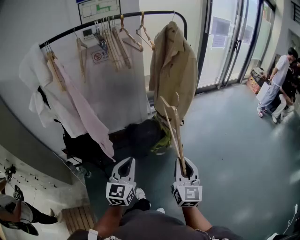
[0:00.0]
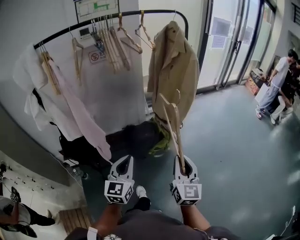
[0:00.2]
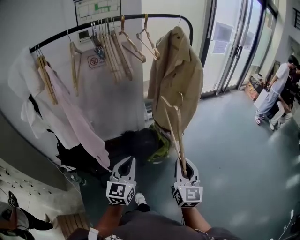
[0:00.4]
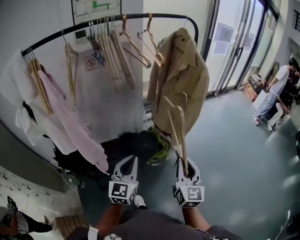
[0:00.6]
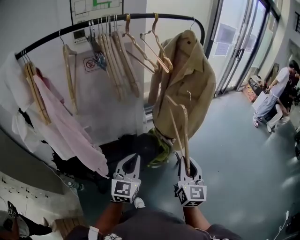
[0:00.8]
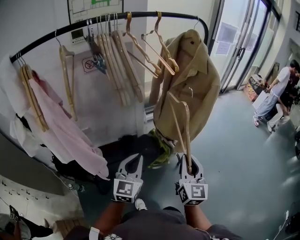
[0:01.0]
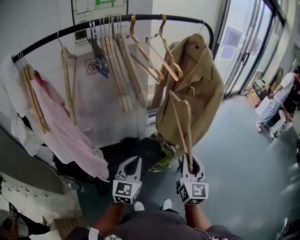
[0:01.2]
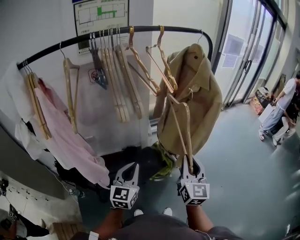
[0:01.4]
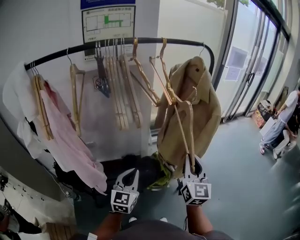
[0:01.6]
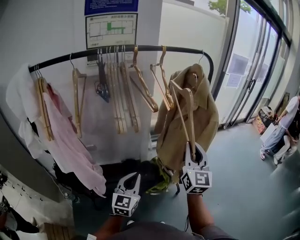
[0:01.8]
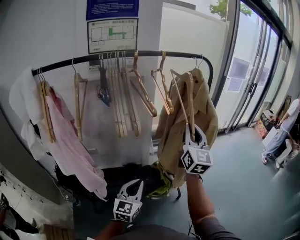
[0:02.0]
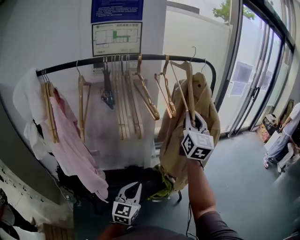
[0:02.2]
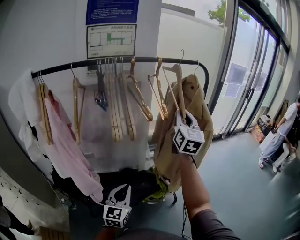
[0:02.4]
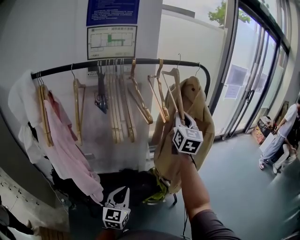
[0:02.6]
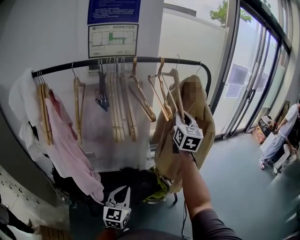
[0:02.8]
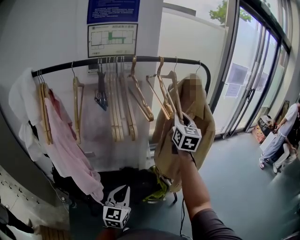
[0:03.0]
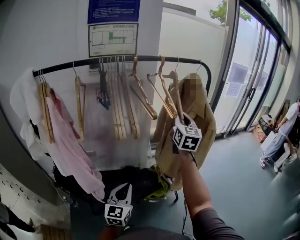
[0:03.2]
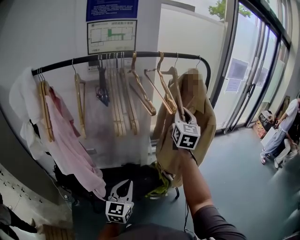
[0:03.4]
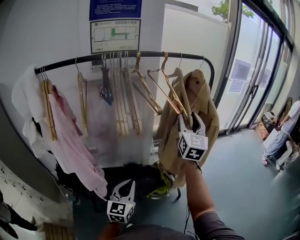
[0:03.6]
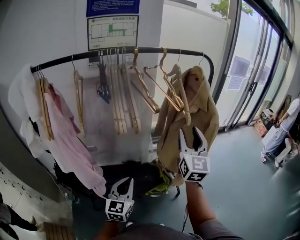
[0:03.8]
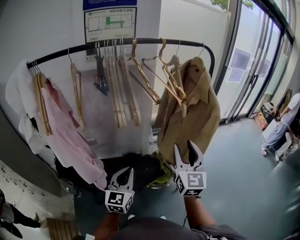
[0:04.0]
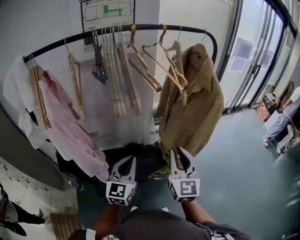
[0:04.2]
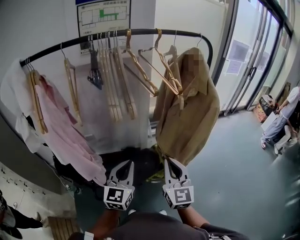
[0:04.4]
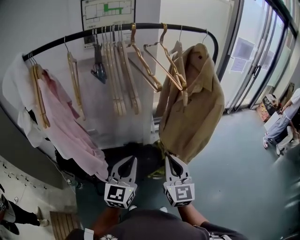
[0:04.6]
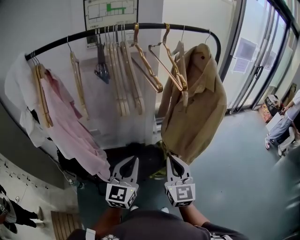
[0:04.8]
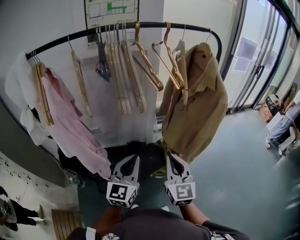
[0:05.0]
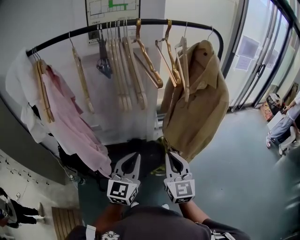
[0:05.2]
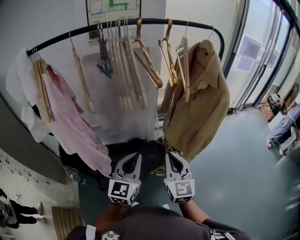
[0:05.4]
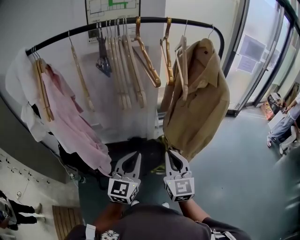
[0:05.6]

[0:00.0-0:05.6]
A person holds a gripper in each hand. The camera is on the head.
0:00.0 to 0:01.4: Both grippers travel together forward, some 25 cm.
0:01.4 to 0:02.8: The right gripper shifts some 30 cm forward and upward.
0:02.8 to 0:04.2: The right gripper shifts some 25 cm backward and downward, and opens and closes again.
0:04.2 to 0:05.6: The right gripper shifts by roughly 5 cm.

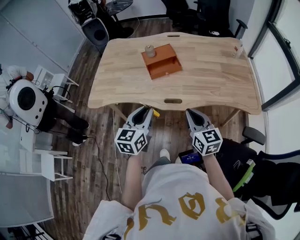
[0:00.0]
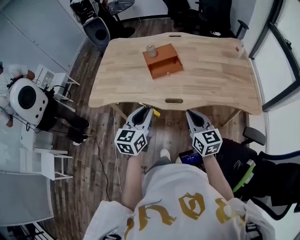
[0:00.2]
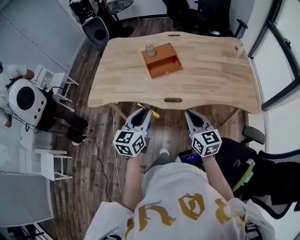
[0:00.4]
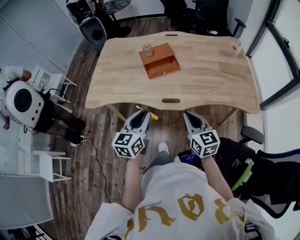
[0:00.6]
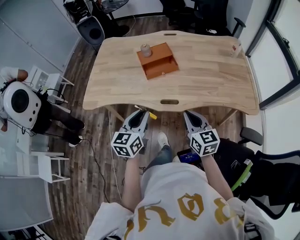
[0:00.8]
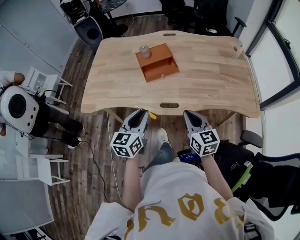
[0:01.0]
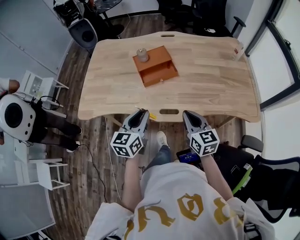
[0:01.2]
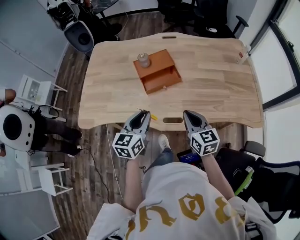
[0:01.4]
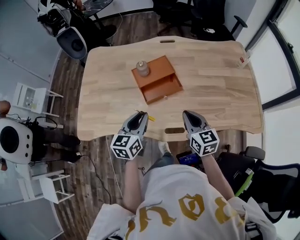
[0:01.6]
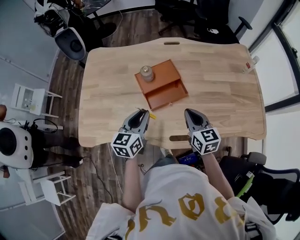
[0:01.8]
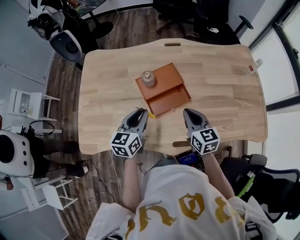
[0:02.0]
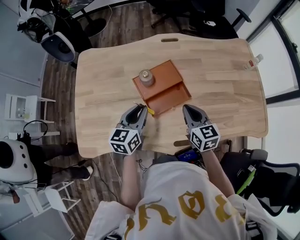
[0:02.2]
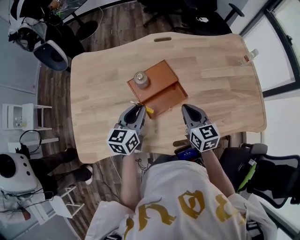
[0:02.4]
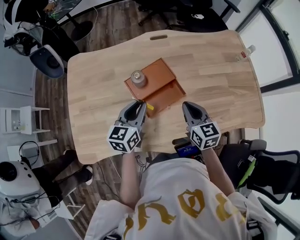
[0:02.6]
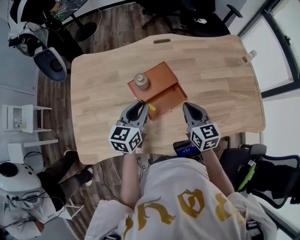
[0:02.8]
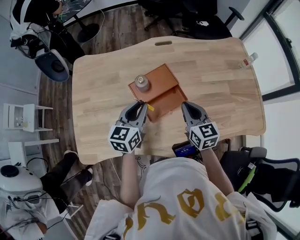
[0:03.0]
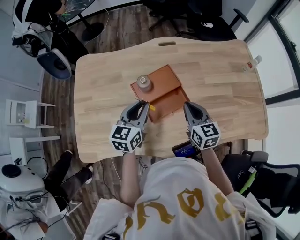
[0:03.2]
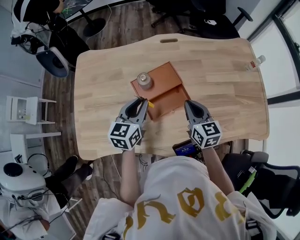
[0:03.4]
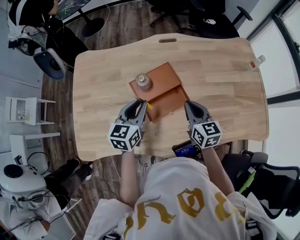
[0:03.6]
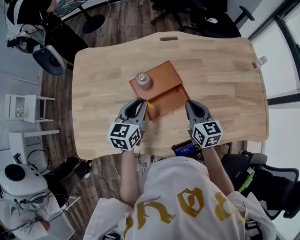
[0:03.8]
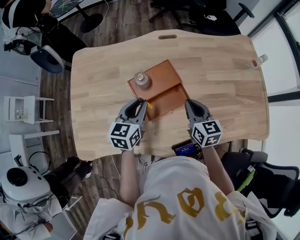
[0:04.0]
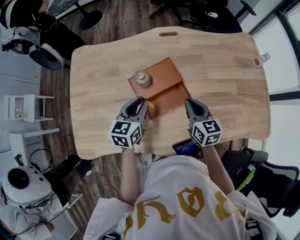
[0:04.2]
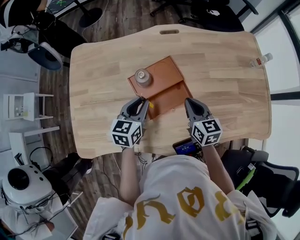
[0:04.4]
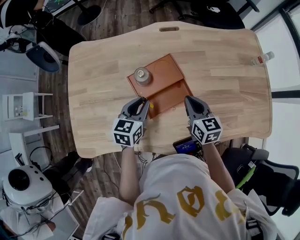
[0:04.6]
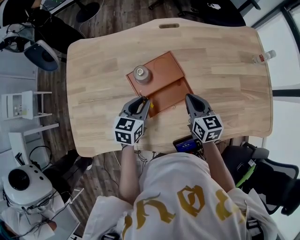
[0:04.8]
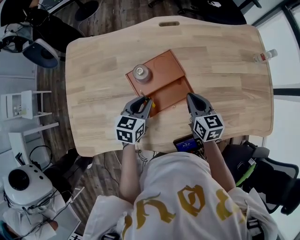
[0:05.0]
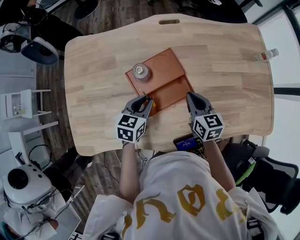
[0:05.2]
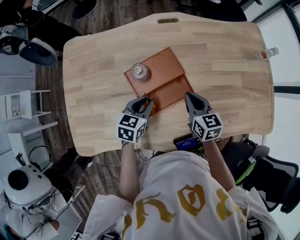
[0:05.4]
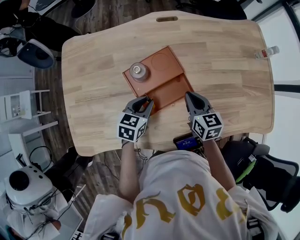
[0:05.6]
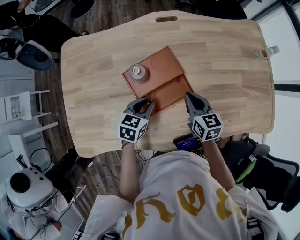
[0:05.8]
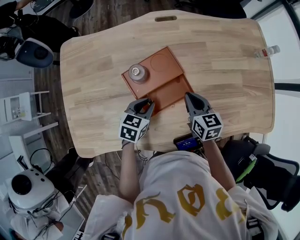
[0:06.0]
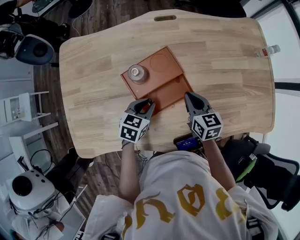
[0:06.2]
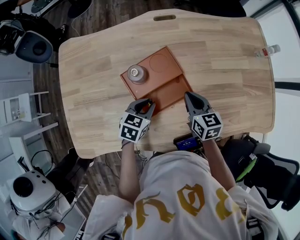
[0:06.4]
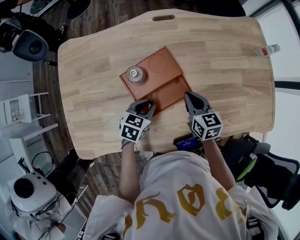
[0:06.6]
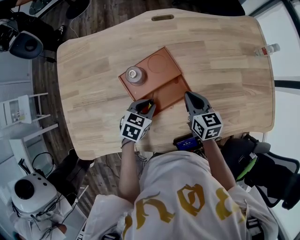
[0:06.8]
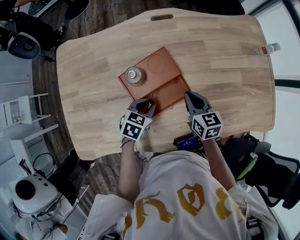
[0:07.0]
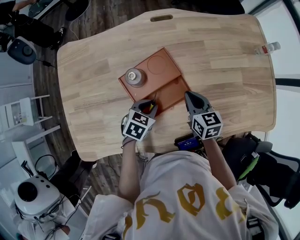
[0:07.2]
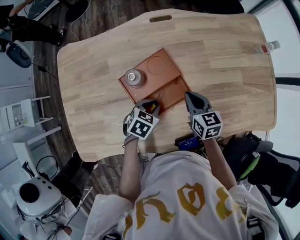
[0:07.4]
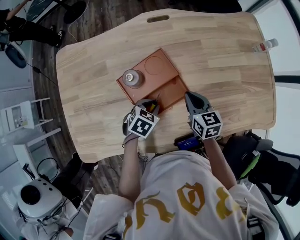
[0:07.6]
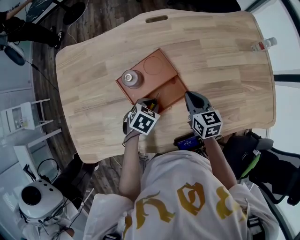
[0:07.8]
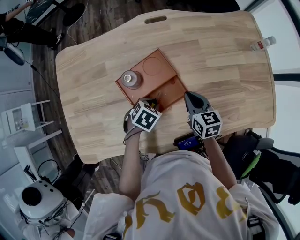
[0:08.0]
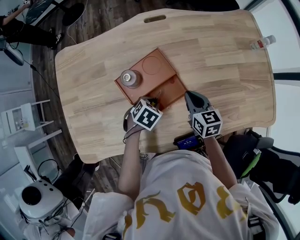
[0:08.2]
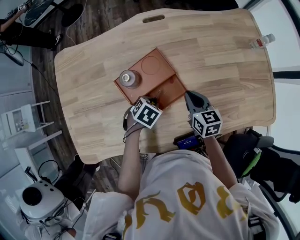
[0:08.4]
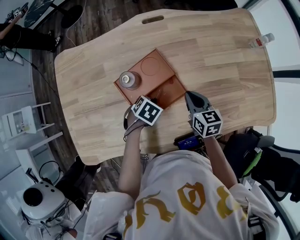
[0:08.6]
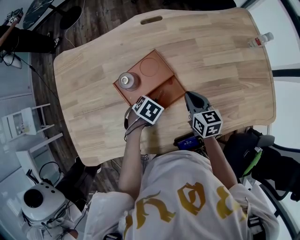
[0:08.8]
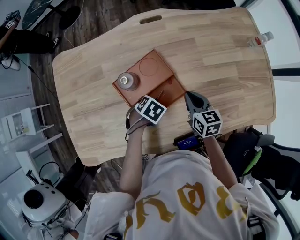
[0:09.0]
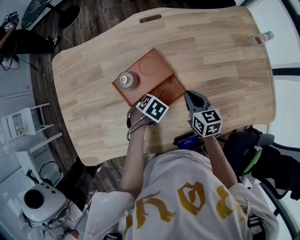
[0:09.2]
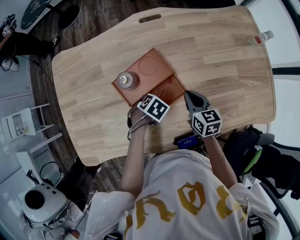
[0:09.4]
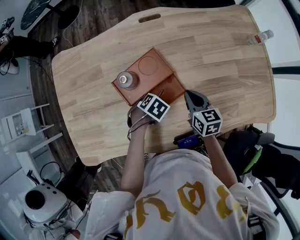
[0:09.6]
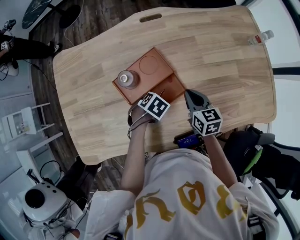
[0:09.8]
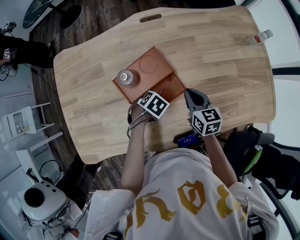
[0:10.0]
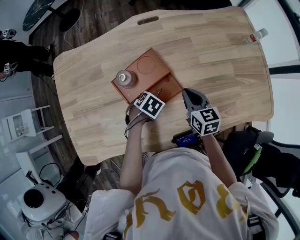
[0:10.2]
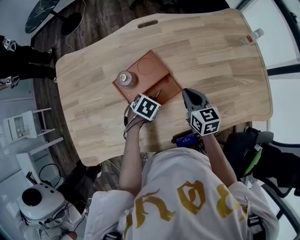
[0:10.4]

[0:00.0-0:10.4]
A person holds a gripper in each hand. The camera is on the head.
0:00.0 to 0:01.4: Both grippers travel together forward, roughly 15 cm.
0:01.4 to 0:03.0: Both grippers move forward, some 20 cm.
0:03.0 to 0:04.4: Both grippers move downward, roughly 5 cm.
0:04.4 to 0:06.0: The left gripper goes some 10 cm downward, and rotates about 20 degrees.
0:06.0 to 0:07.4: The grippers move only a little.
0:07.4 to 0:09.0: The left gripper turns by some 20 degrees.
0:09.0 to 0:10.4: The grippers make only small movements.

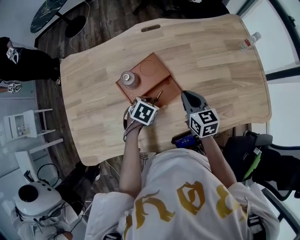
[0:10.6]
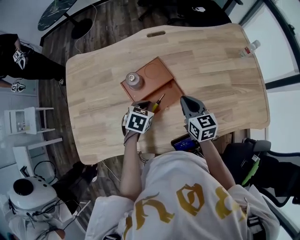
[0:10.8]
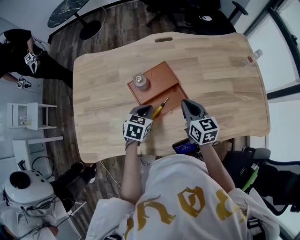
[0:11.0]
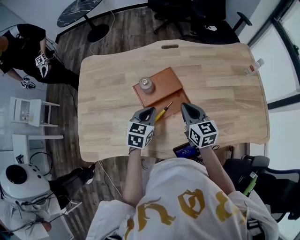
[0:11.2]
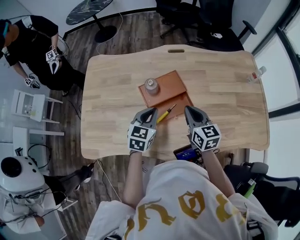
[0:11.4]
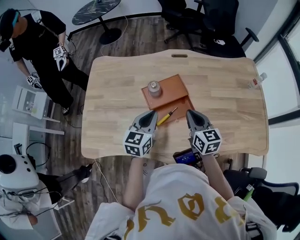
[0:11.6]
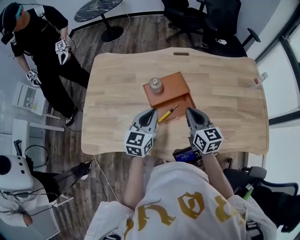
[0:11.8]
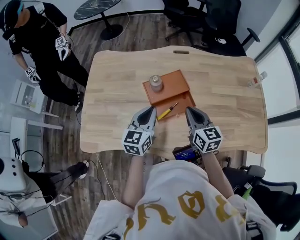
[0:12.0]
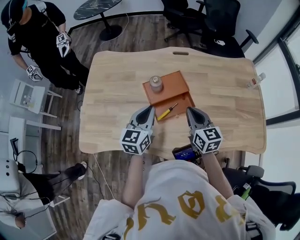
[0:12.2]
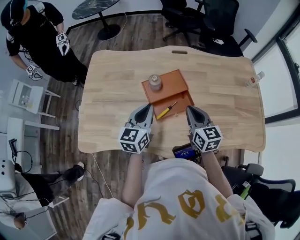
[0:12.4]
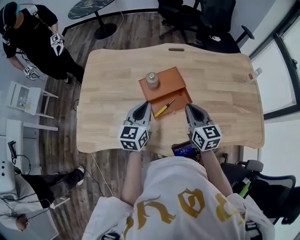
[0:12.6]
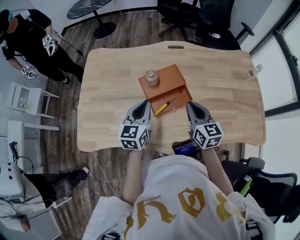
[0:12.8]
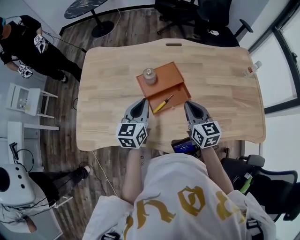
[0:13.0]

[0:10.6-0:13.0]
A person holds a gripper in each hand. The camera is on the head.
0:10.6 to 0:11.8: The right gripper is displaced upward and to the left by approximately 10 cm. The left gripper moves upward, approximately 20 cm, and tips its fingers upward by roughly 50 degrees.
0:11.8 to 0:13.0: There are only small adjustments of the grippers.

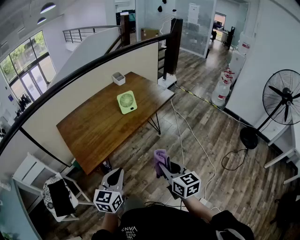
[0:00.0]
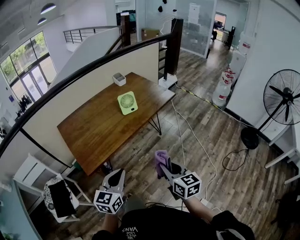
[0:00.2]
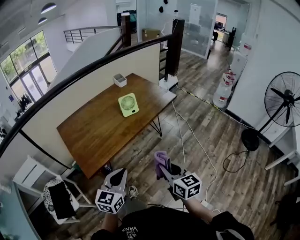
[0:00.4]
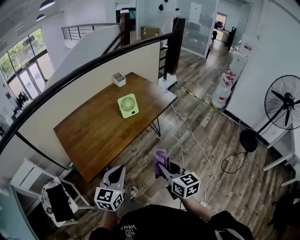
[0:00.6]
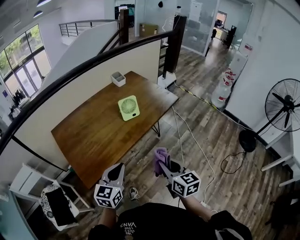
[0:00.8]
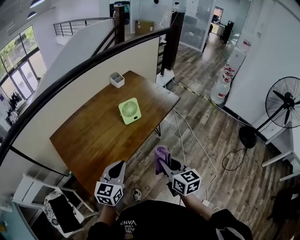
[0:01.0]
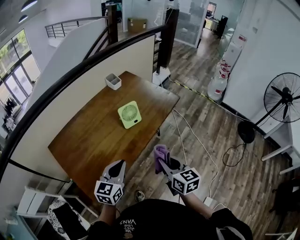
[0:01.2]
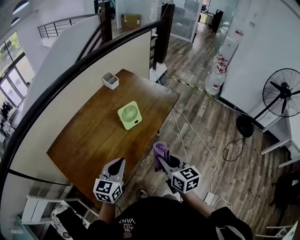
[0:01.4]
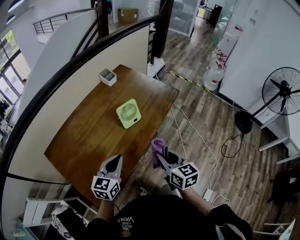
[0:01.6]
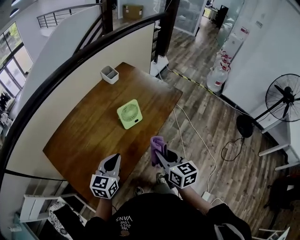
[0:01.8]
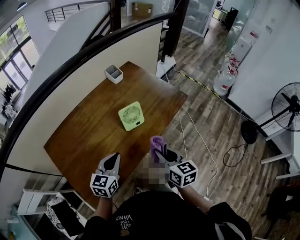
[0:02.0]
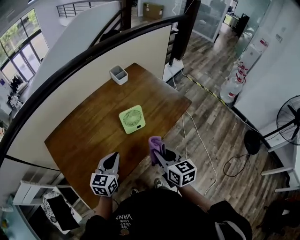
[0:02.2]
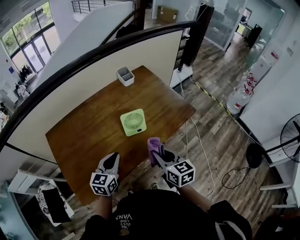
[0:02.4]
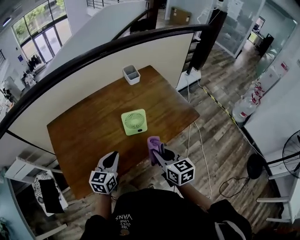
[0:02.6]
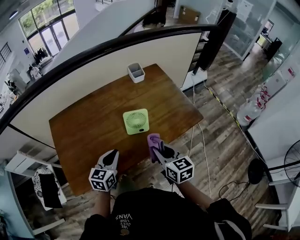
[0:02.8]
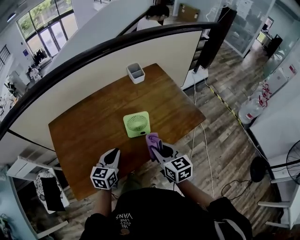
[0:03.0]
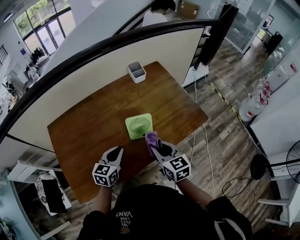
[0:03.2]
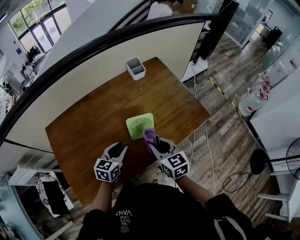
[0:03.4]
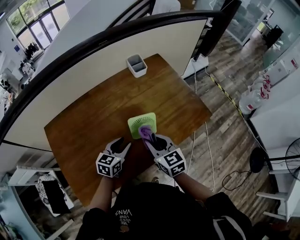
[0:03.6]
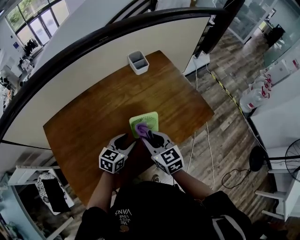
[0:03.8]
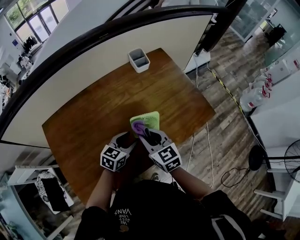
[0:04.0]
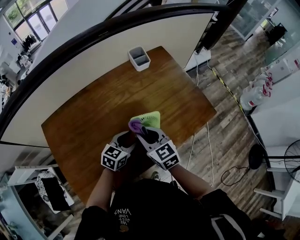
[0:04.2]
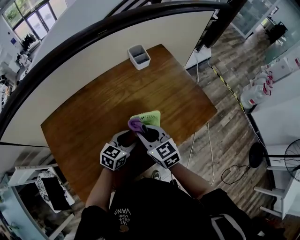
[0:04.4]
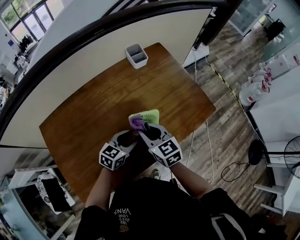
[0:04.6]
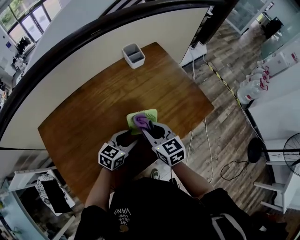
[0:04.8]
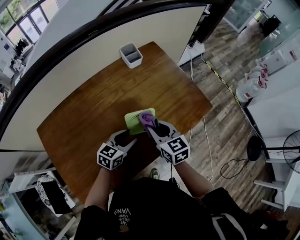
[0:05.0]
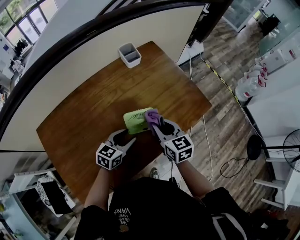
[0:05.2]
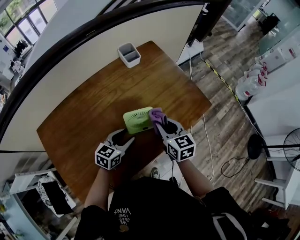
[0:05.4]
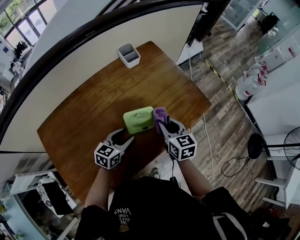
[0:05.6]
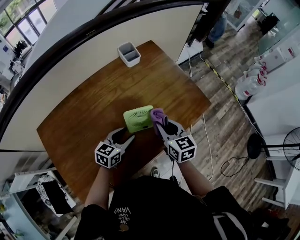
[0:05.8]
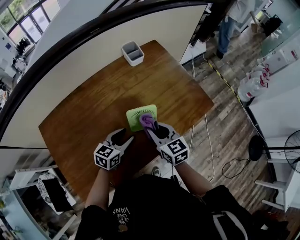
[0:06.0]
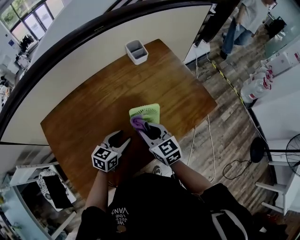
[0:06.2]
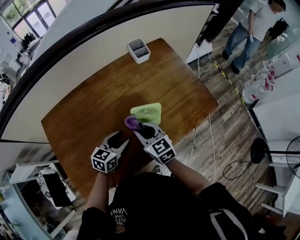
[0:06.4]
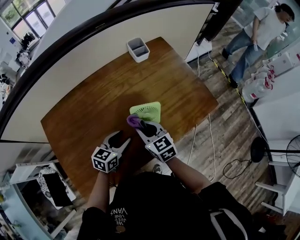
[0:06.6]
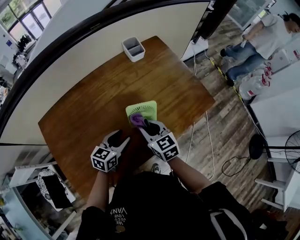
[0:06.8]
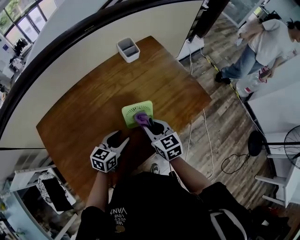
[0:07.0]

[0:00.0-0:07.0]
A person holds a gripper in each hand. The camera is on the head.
0:00.0 to 0:01.4: The grippers both shift forward by approximately 25 cm.
0:01.4 to 0:02.8: The right gripper ends up approximately 20 cm from where it was, and swivels roughly 30 degrees. Meanwhile the left gripper moves roughly 15 cm, and turns by some 30 degrees.
0:02.8 to 0:04.2: The right gripper heads forward, to the left and downward, covering some 20 cm; the left gripper travels forward and downward by some 15 cm, changes its angle by some 20 degrees, and opens.
0:04.2 to 0:05.6: The right gripper moves to the right, about 15 cm, and turns by about 20 degrees.
0:05.6 to 0:07.0: The right gripper heads to the left, covering roughly 5 cm.
